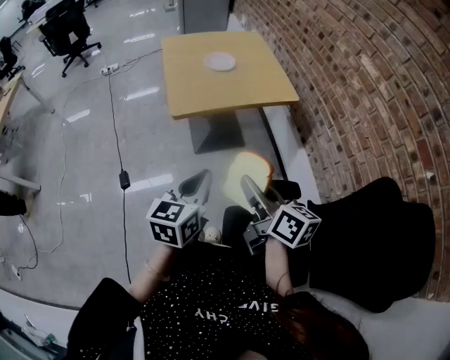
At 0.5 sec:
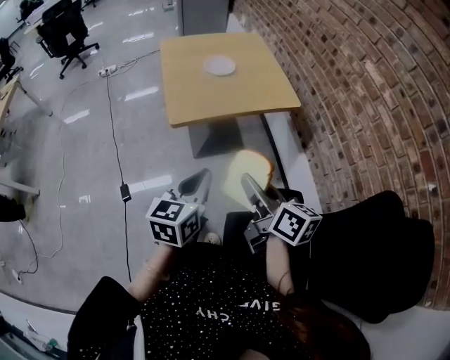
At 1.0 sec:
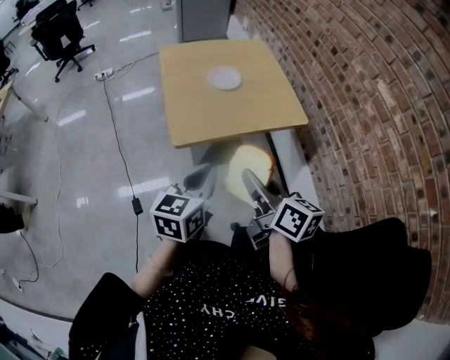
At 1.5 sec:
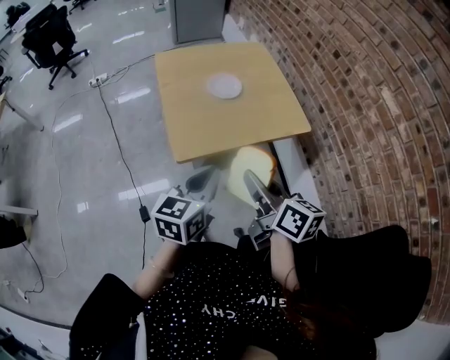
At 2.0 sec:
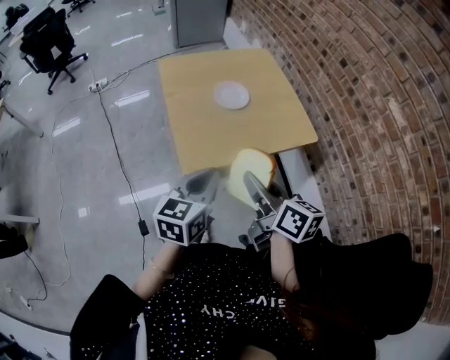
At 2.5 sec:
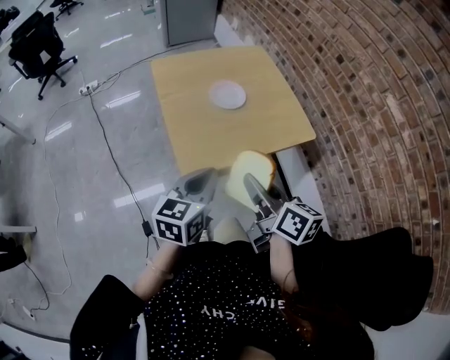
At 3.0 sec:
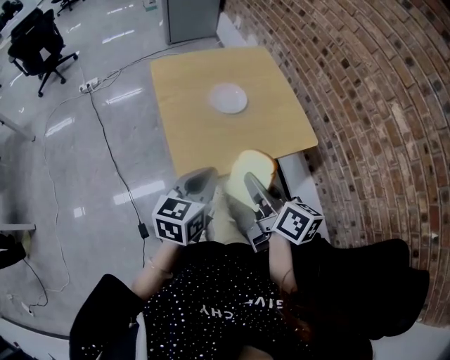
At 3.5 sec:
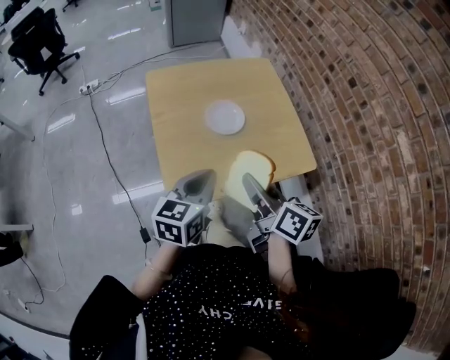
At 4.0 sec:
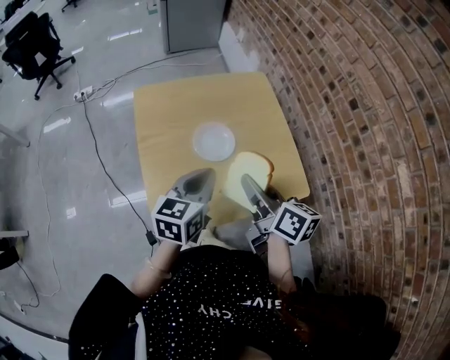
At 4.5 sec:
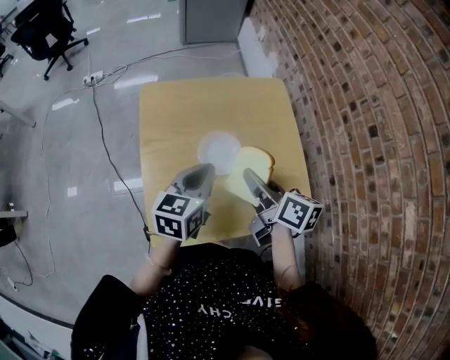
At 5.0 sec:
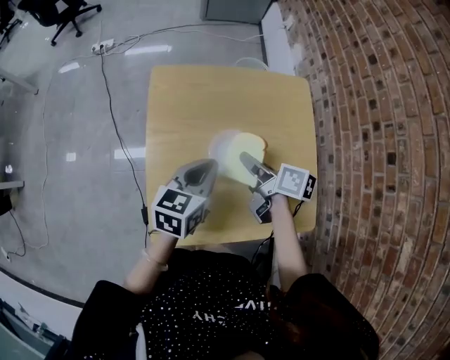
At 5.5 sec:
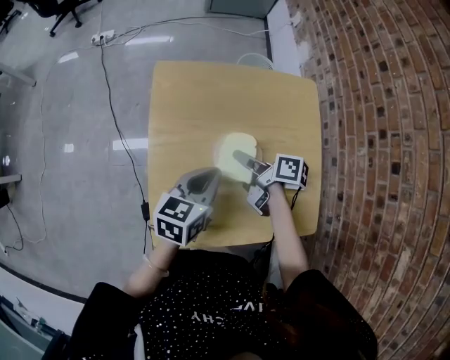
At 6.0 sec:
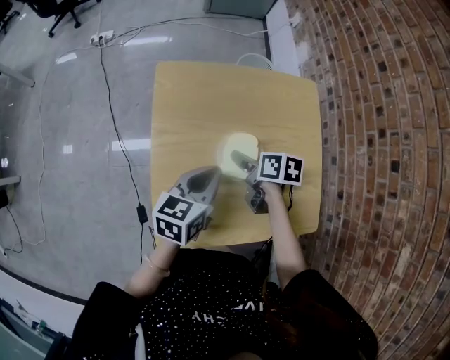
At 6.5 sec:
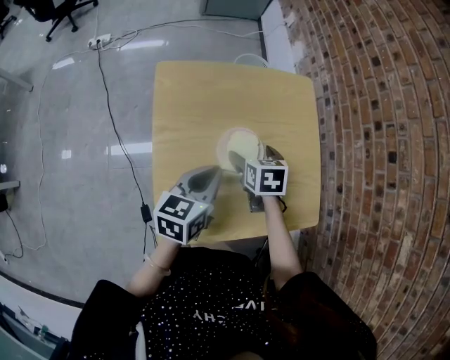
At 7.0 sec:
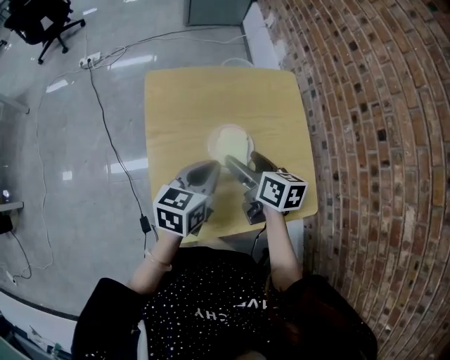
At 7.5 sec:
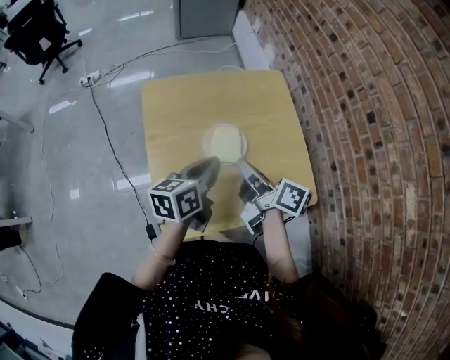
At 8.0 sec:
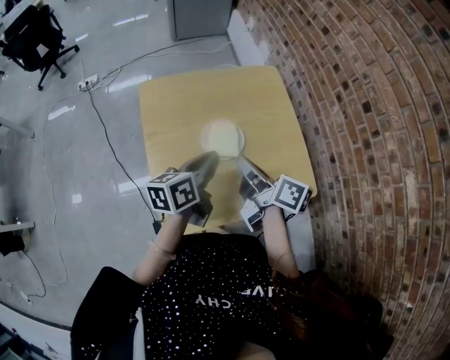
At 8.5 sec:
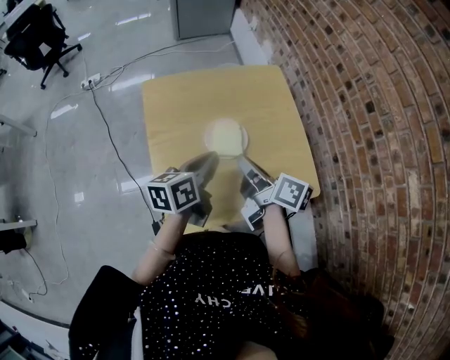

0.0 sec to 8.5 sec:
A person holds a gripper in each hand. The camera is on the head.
0.0 sec to 2.0 sec: Both grippers travel together forward, some 25 cm.
2.0 sec to 4.0 sec: The two grippers go some 25 cm forward.
4.0 sec to 6.5 sec: The right gripper shifts roughly 25 cm forward and downward, tips its fingers downward by approximately 40 degrees, and opens; the left gripper heads forward and downward, covering roughly 10 cm.
6.5 sec to 8.5 sec: The right gripper is displaced upward and backward by some 20 cm, tilts its fingers some 40 degrees upward, and closes up. The left gripper shifts by approximately 5 cm.

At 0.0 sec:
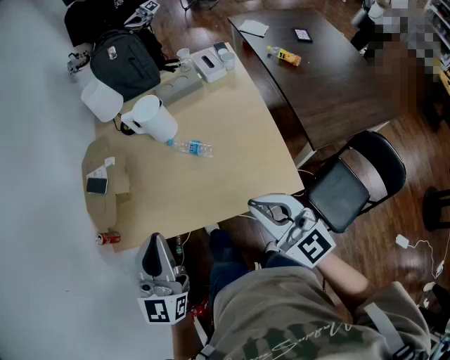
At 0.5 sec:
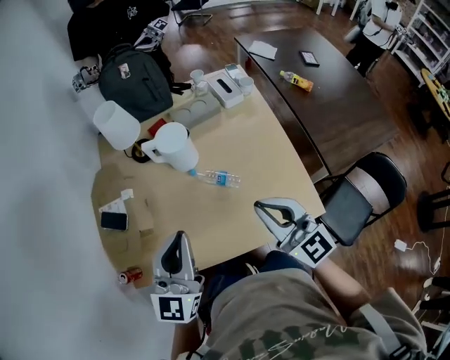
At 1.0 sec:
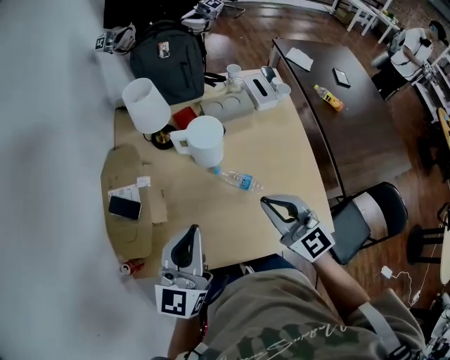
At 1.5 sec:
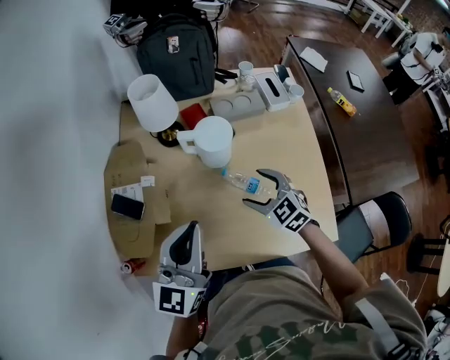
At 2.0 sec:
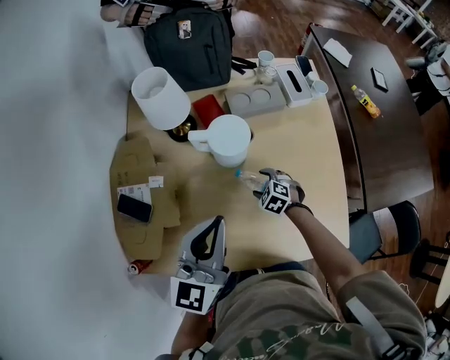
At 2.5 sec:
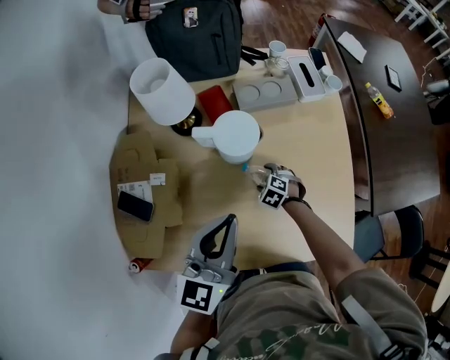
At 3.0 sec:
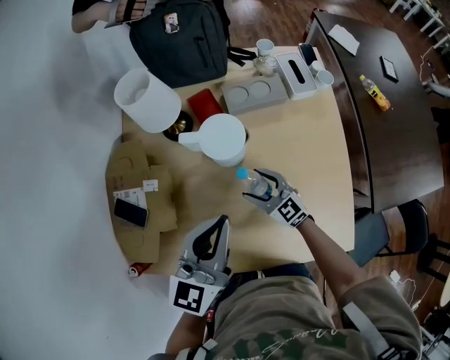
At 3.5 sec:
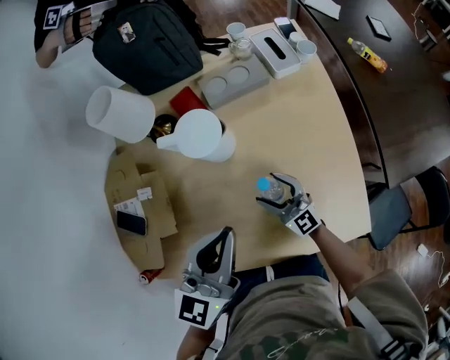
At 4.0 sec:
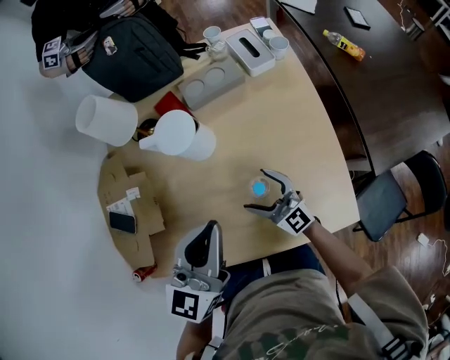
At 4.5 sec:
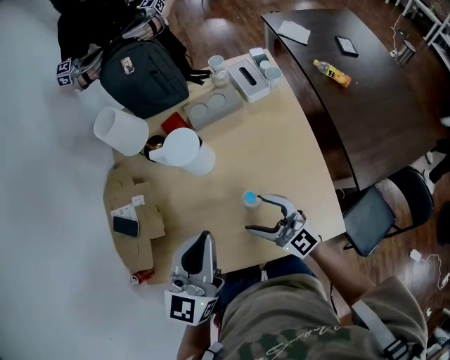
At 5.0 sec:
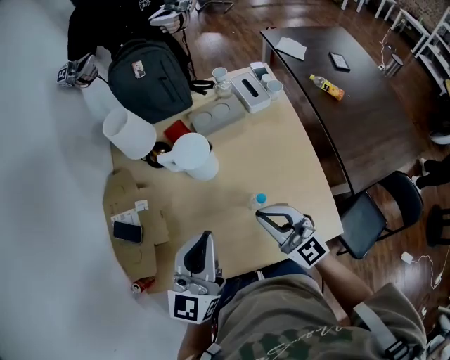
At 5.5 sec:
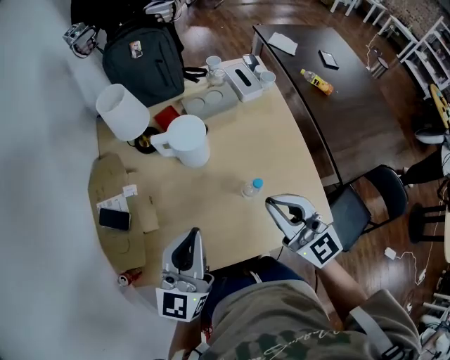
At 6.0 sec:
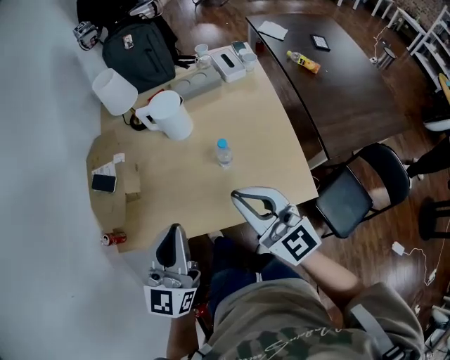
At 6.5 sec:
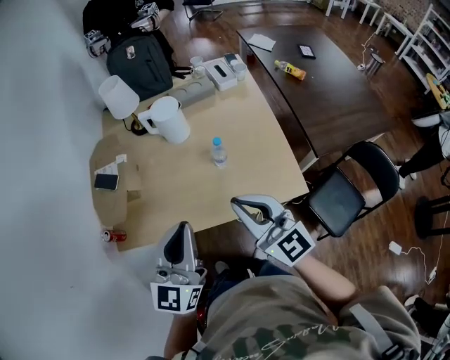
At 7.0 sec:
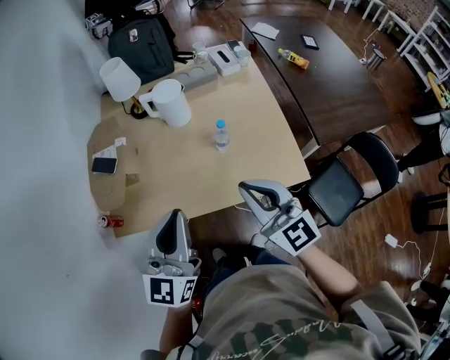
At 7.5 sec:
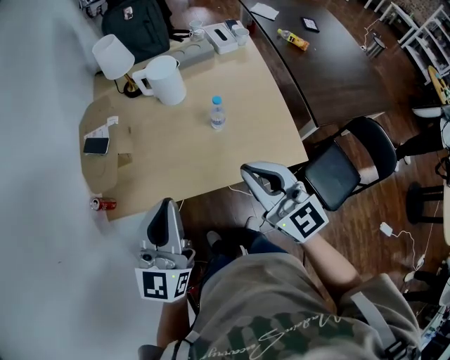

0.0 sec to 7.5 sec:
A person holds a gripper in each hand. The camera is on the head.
0.0 sec to 2.0 sec: The left gripper goes some 30 cm forward; the right gripper shifts roughly 50 cm downward and forward, tilts its fingers approximately 60 degrees downward, and opens up.
2.0 sec to 4.0 sec: The left gripper shifts about 10 cm to the right; the right gripper shifts approximately 15 cm upward, backward and to the right, and points its fingers about 60 degrees further upward.
4.0 sec to 5.5 sec: The right gripper goes about 25 cm upward, and closes. Meanwhile the left gripper is displaced to the left by roughly 10 cm.
5.5 sec to 7.5 sec: Both grippers travel together backward, about 20 cm.

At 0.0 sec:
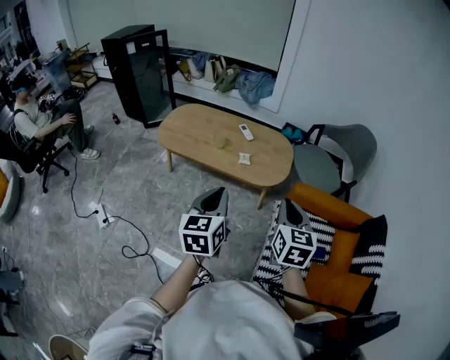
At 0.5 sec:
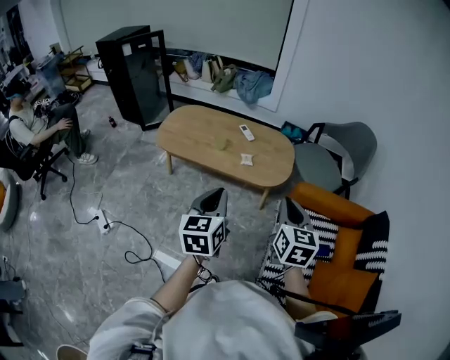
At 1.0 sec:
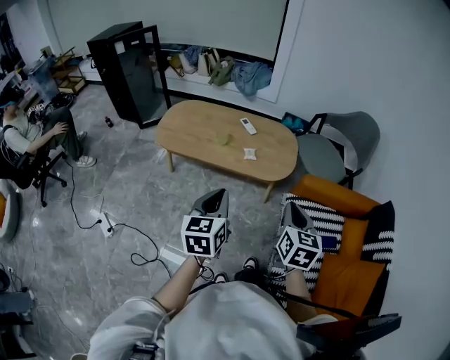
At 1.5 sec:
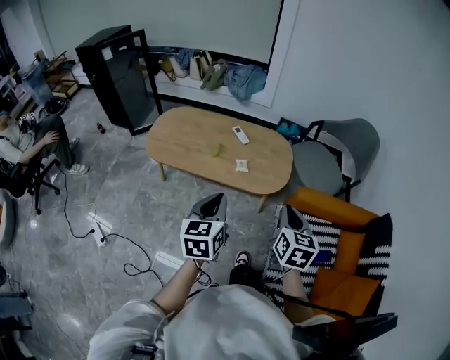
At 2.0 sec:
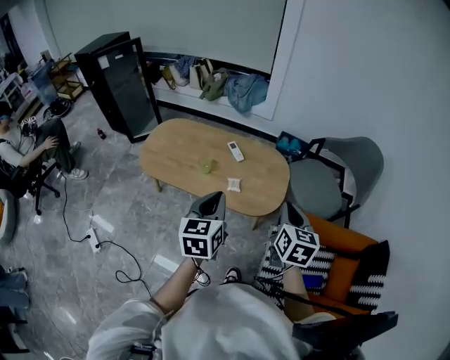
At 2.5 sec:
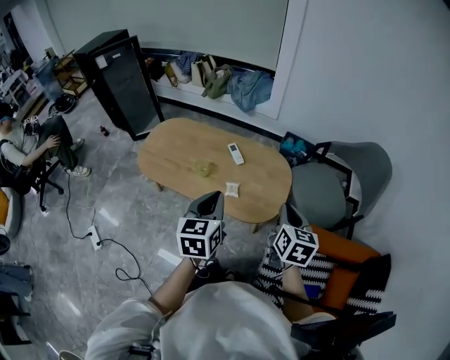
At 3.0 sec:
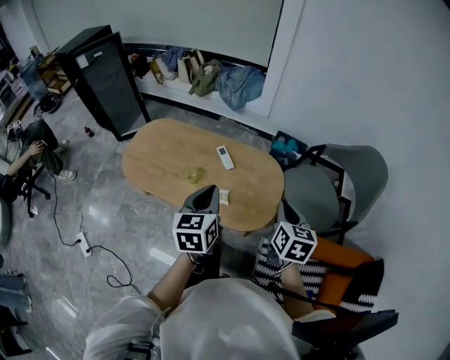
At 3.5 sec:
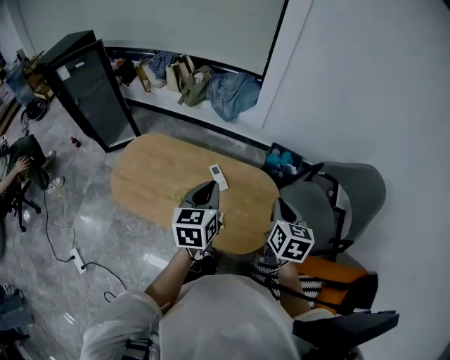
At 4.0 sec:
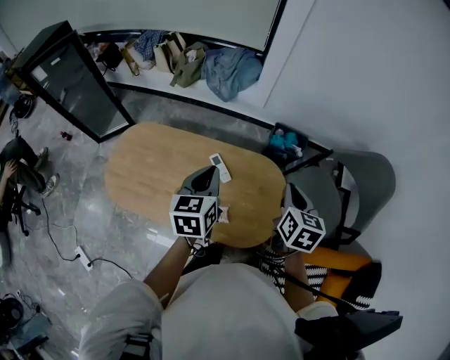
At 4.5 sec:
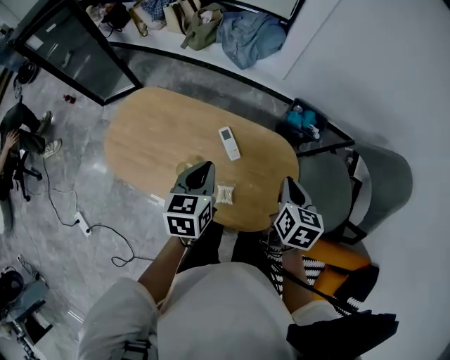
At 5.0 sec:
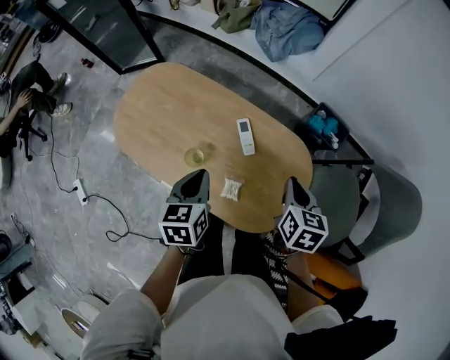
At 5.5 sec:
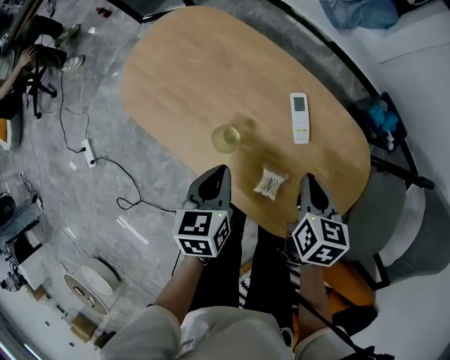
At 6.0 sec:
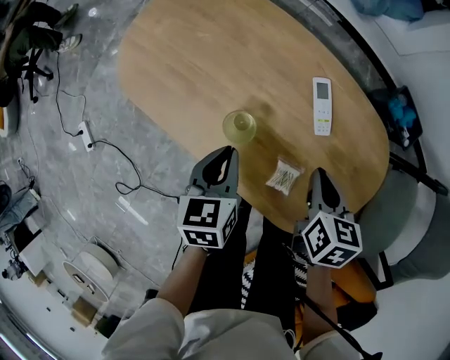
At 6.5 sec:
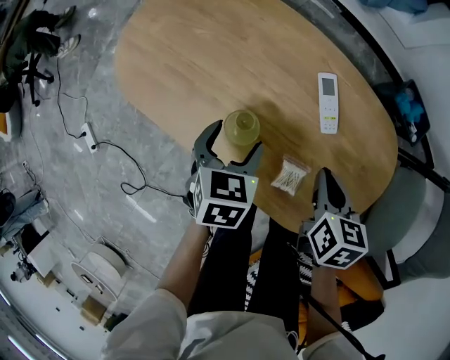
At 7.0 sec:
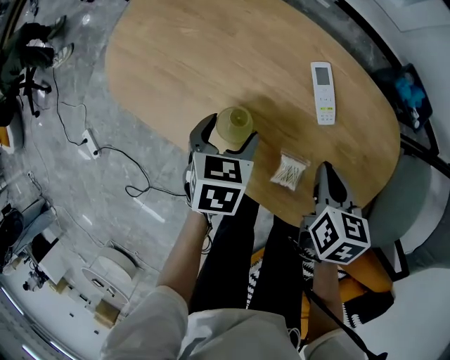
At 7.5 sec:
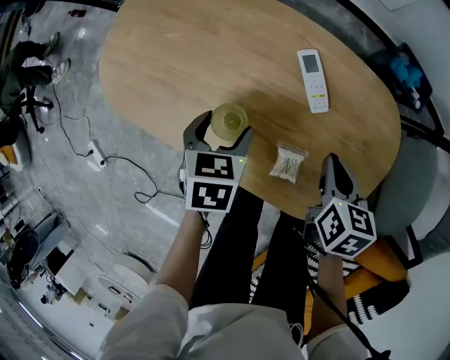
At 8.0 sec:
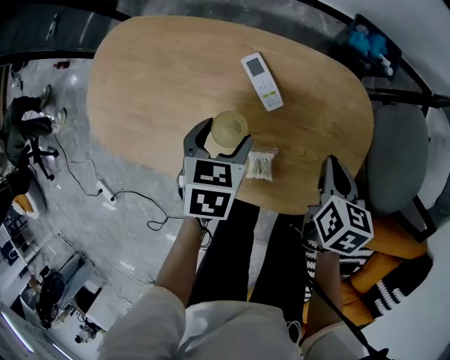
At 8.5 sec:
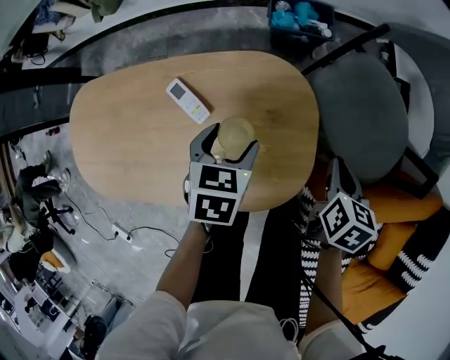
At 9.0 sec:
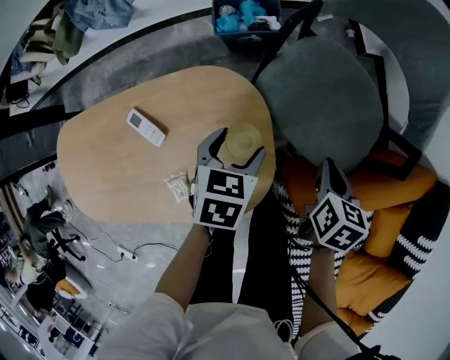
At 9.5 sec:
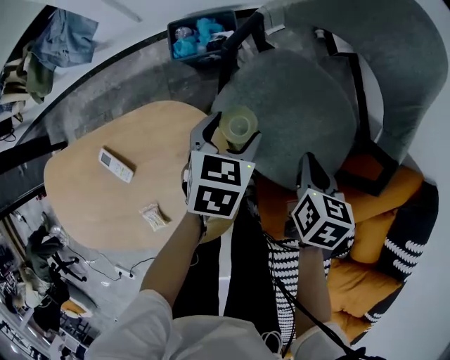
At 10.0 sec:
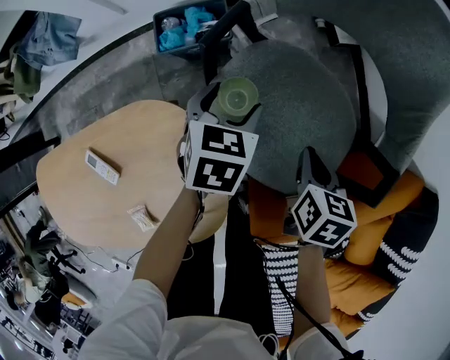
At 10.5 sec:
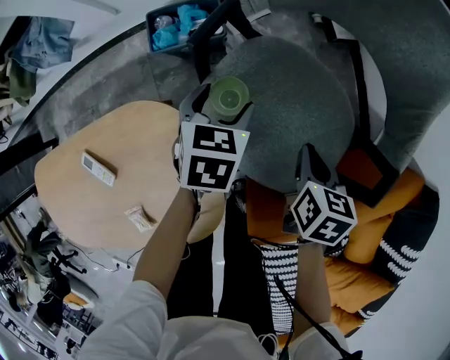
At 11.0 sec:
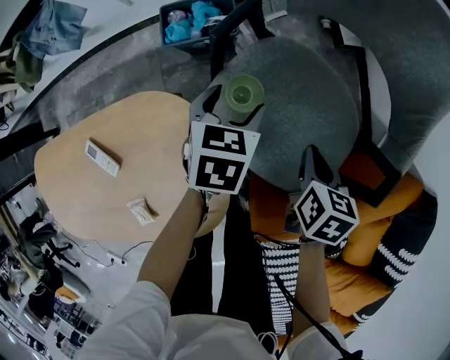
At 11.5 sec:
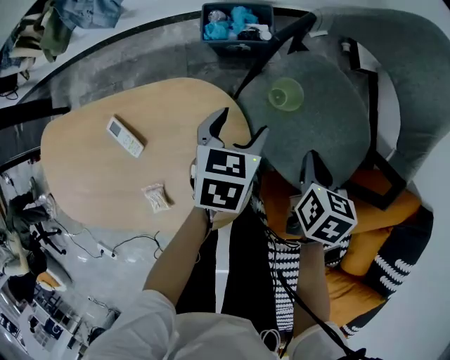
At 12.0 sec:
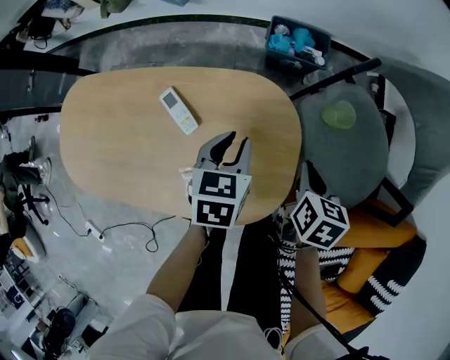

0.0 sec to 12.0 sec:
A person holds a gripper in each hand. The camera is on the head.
0.0 sec to 2.0 sec: Both grippers move forward, some 25 cm.
2.0 sec to 4.0 sec: The grippers both shift forward by about 40 cm.
4.0 sec to 6.0 sec: Both grippers move downward, some 35 cm. The left gripper rotates roughly 30 degrees, while the right gripper swivels about 30 degrees.
6.0 sec to 8.0 sec: The right gripper ends up some 15 cm from where it was, and swivels some 30 degrees; the left gripper ends up approximately 15 cm from where it was, turns by about 40 degrees, and opens its fingers.
8.0 sec to 10.0 sec: The two grippers travel together, roughly 50 cm. The right gripper swivels about 30 degrees; the left gripper changes its angle by roughly 40 degrees.
10.0 sec to 12.0 sec: Both grippers travel together to the left and backward, approximately 25 cm. The left gripper rotates approximately 30 degrees, and closes up.
